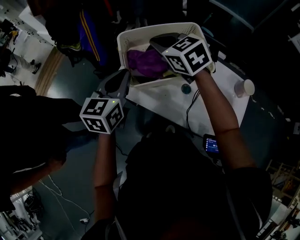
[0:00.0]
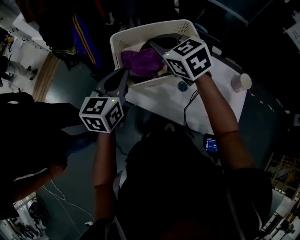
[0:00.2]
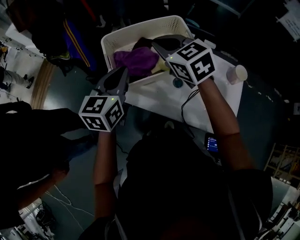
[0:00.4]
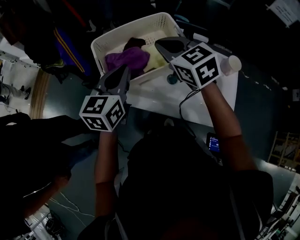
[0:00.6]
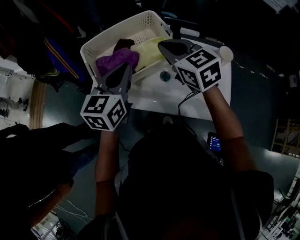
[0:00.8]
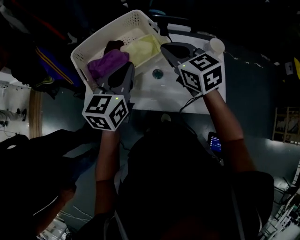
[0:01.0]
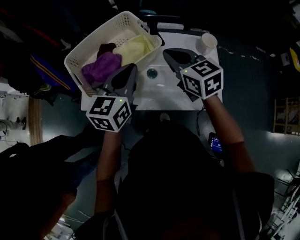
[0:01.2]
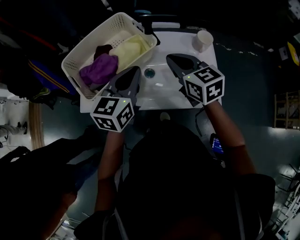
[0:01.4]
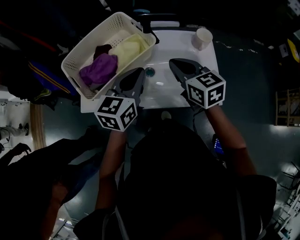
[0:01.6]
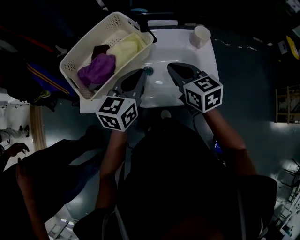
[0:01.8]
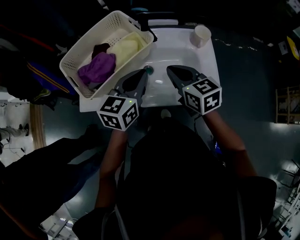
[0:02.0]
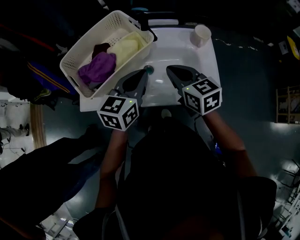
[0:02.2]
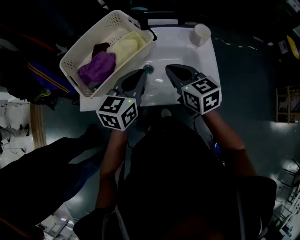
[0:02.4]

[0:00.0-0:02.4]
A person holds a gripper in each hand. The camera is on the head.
0.0 to 1.2 s: The right gripper ends up approximately 25 cm from where it was, and changes its angle by approximately 40 degrees; the left gripper ends up approximately 20 cm from where it was, and changes its angle by approximately 30 degrees.
1.2 to 2.4 s: The right gripper goes approximately 5 cm backward. The left gripper ends up approximately 5 cm from where it was.

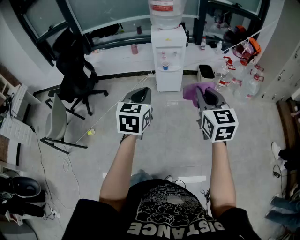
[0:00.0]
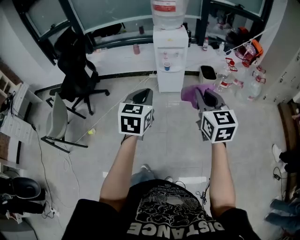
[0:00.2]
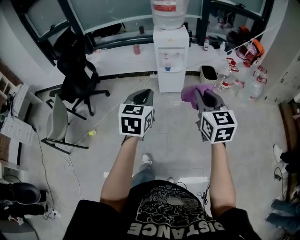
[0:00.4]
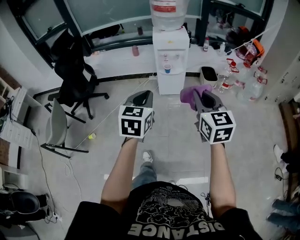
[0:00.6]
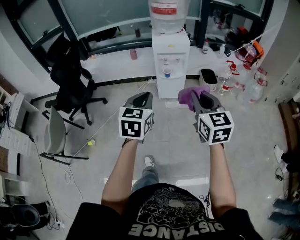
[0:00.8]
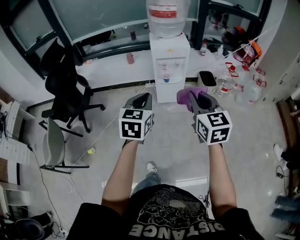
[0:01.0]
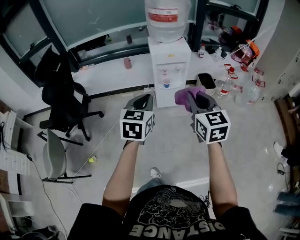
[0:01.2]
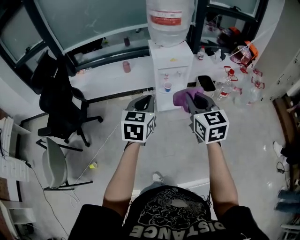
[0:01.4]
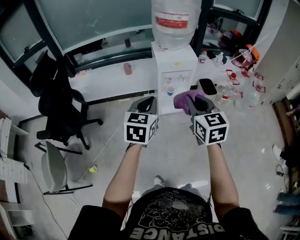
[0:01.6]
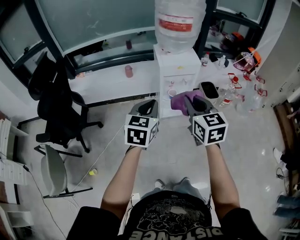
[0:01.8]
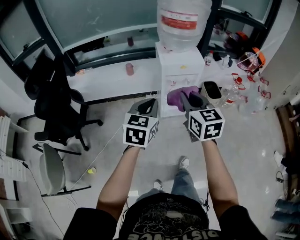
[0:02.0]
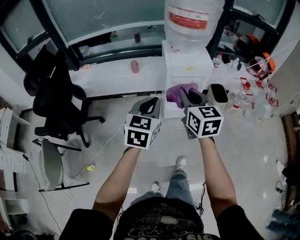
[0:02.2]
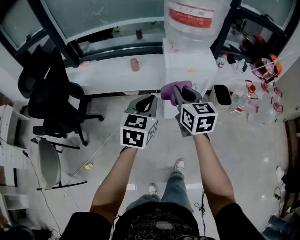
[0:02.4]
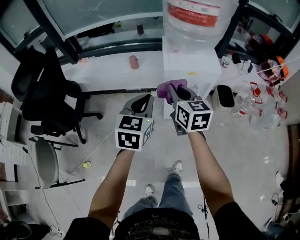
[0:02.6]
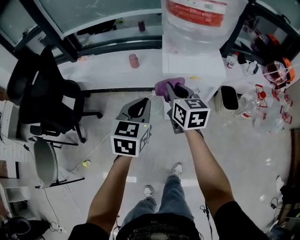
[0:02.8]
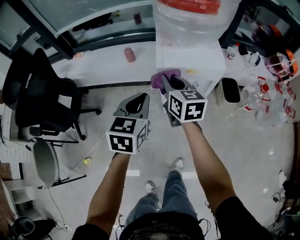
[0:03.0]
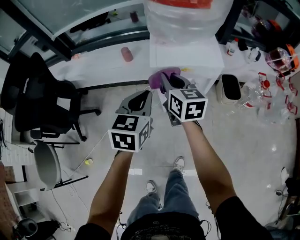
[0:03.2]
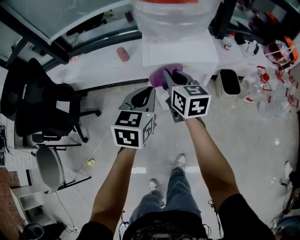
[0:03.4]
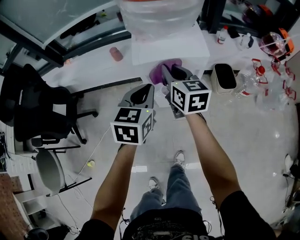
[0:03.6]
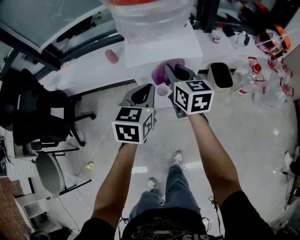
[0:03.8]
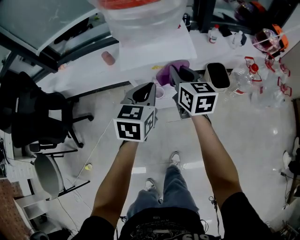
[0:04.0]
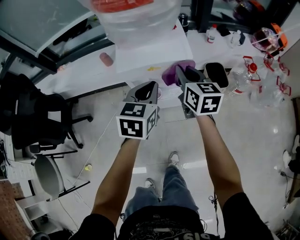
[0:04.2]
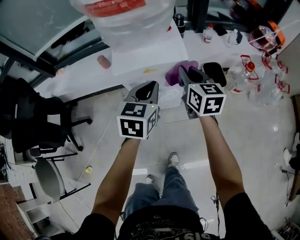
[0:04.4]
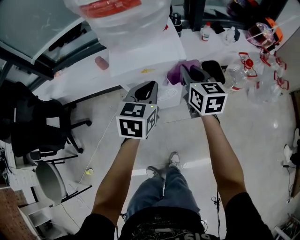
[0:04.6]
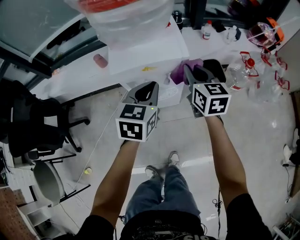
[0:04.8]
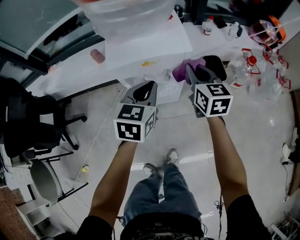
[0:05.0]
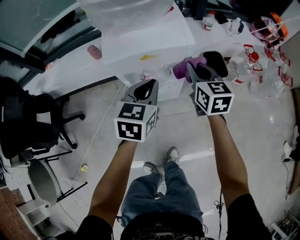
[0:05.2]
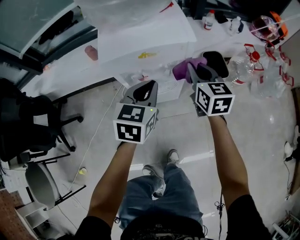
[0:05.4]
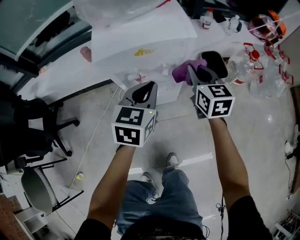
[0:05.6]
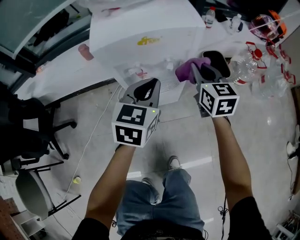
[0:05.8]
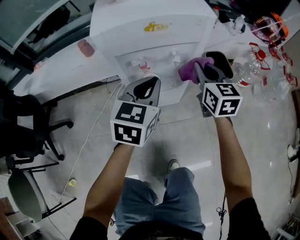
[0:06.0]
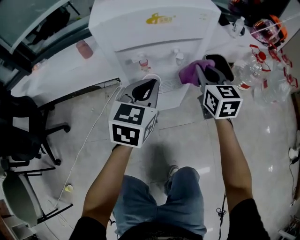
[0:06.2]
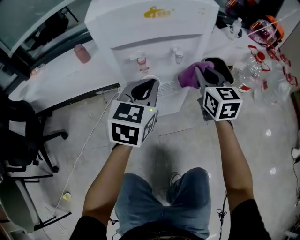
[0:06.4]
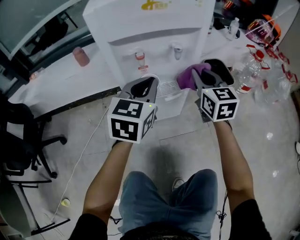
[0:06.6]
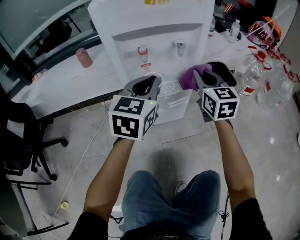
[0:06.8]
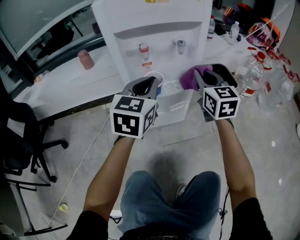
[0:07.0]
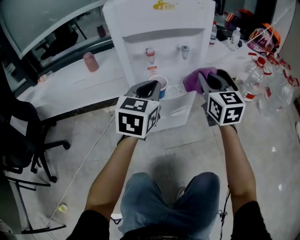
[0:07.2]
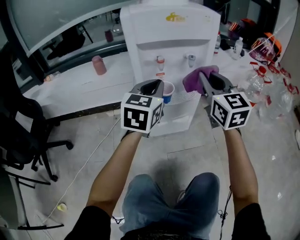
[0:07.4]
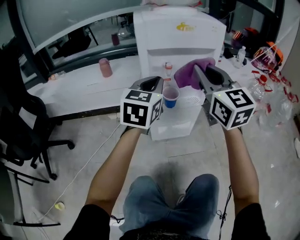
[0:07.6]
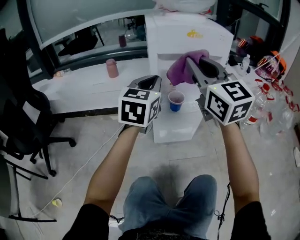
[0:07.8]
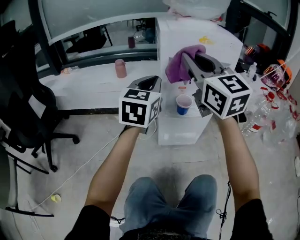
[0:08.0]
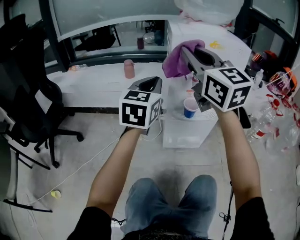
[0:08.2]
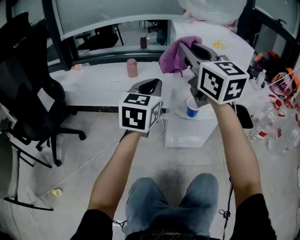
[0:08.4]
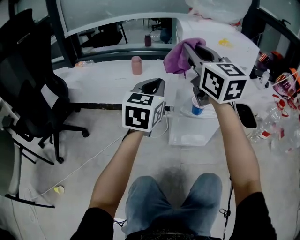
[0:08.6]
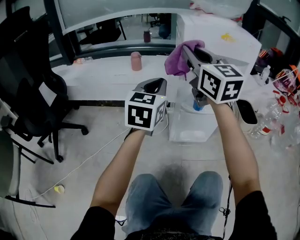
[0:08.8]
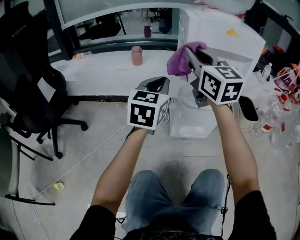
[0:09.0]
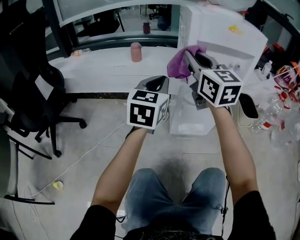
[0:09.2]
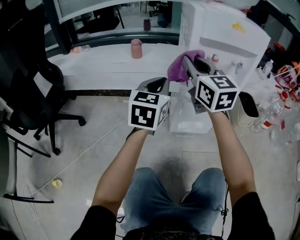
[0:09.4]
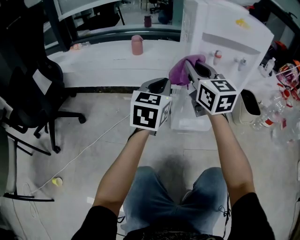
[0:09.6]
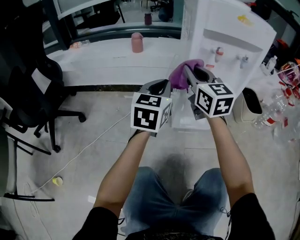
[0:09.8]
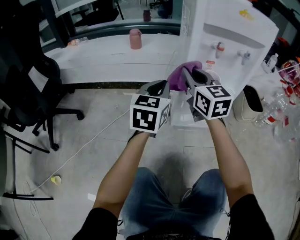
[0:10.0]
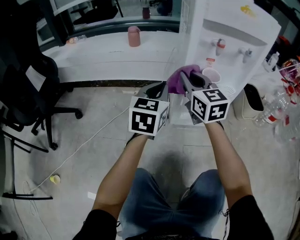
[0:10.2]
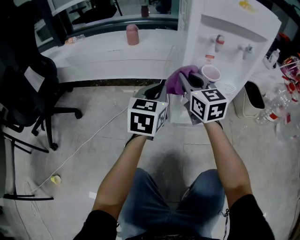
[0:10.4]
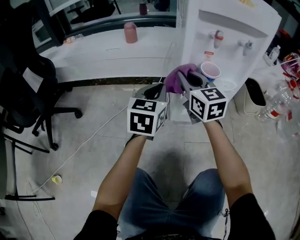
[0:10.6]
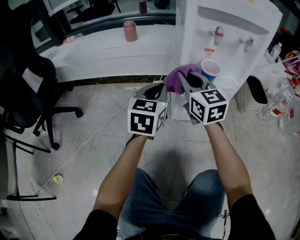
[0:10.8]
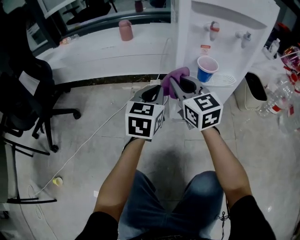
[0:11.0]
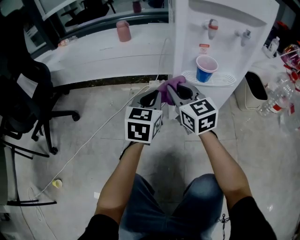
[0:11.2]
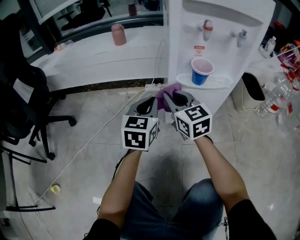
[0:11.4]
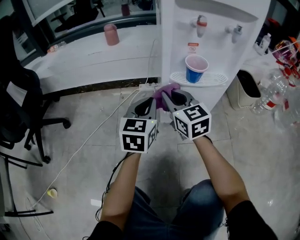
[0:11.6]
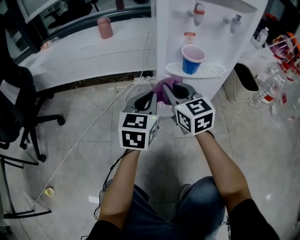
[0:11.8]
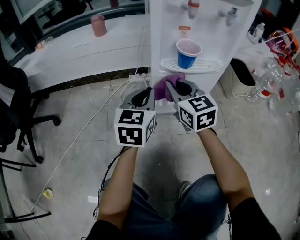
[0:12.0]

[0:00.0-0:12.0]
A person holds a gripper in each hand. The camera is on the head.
0.0 to 1.6 s: The left gripper moves forward, roughly 30 cm. Meanwhile the right gripper is displaced forward and to the left by about 30 cm.
1.6 to 3.0 s: The grippers both shift forward and downward by some 30 cm. The right gripper swivels approximately 20 degrees.
3.0 to 4.4 s: Both grippers move to the right, approximately 20 cm.
4.4 to 6.0 s: The grippers both shift downward by roughly 20 cm.
6.0 to 7.6 s: The left gripper shifts approximately 5 cm to the left, and reaches approximately 10 cm downward, then returns, while the right gripper shifts approximately 15 cm to the left, backward and upward, and changes its angle by some 30 degrees.
7.6 to 9.0 s: The left gripper shifts roughly 10 cm to the left; the right gripper heads to the left and forward, covering approximately 15 cm.
9.0 to 10.4 s: The right gripper travels downward by approximately 20 cm; the left gripper heads downward, covering roughly 15 cm.
10.4 to 12.0 s: The two grippers go approximately 10 cm downward and to the right.

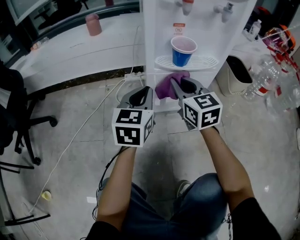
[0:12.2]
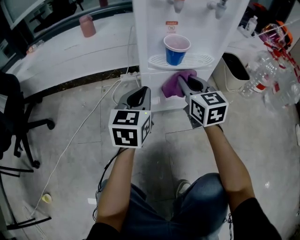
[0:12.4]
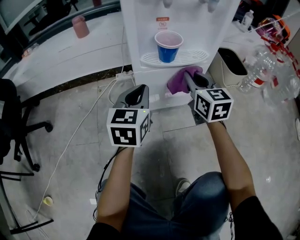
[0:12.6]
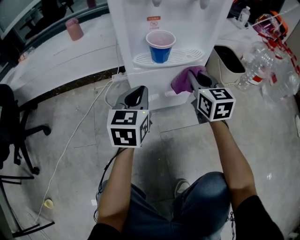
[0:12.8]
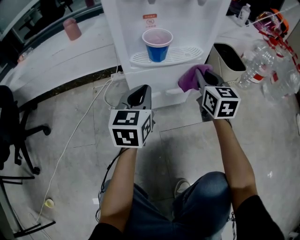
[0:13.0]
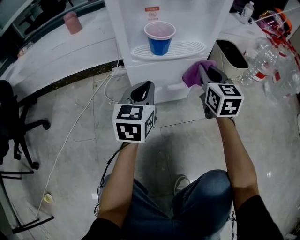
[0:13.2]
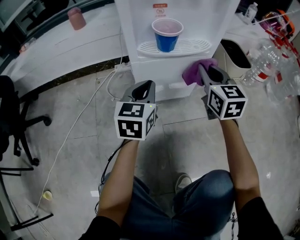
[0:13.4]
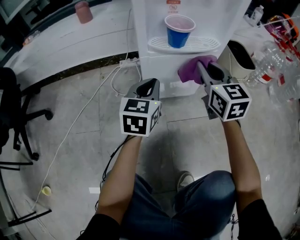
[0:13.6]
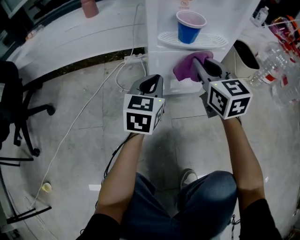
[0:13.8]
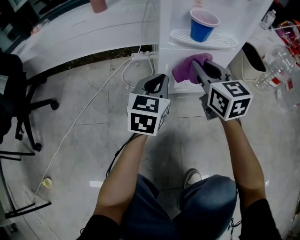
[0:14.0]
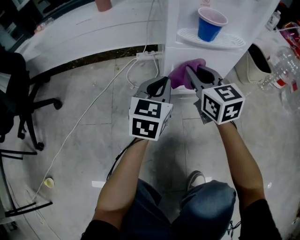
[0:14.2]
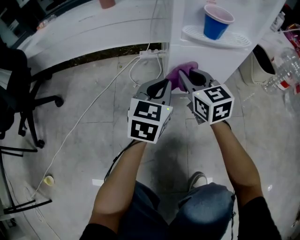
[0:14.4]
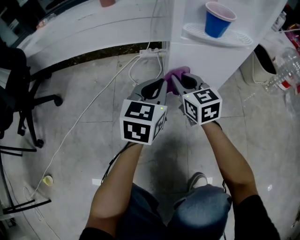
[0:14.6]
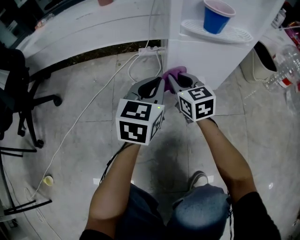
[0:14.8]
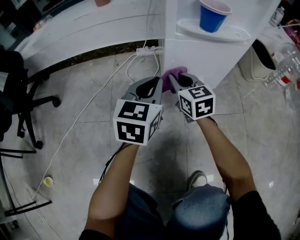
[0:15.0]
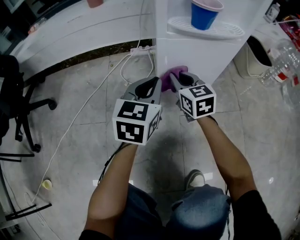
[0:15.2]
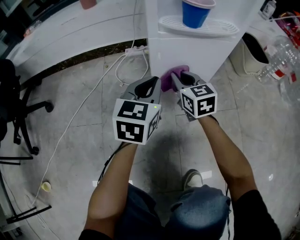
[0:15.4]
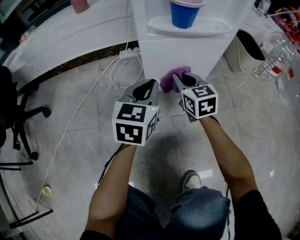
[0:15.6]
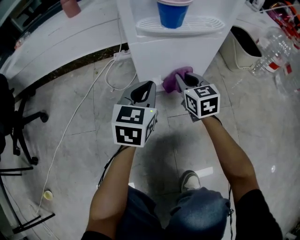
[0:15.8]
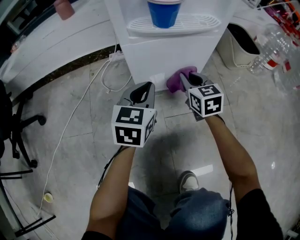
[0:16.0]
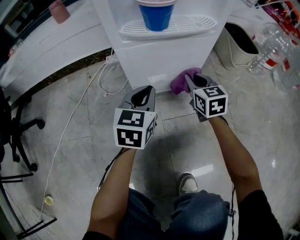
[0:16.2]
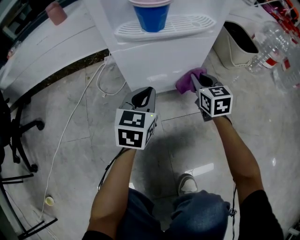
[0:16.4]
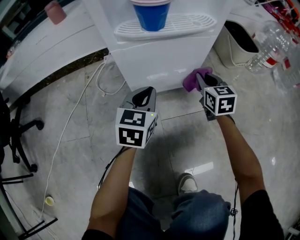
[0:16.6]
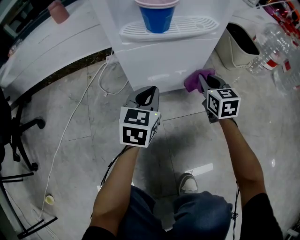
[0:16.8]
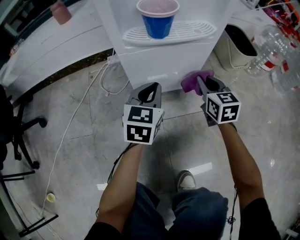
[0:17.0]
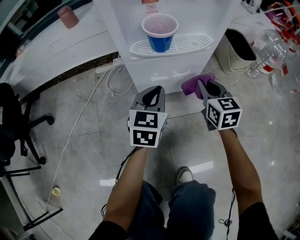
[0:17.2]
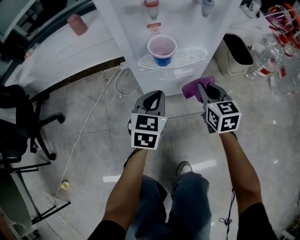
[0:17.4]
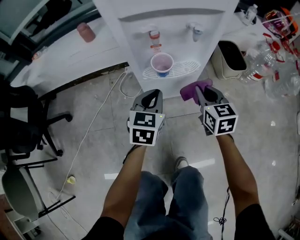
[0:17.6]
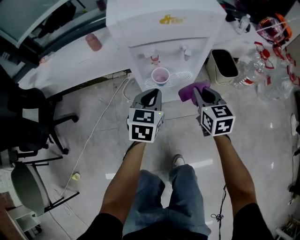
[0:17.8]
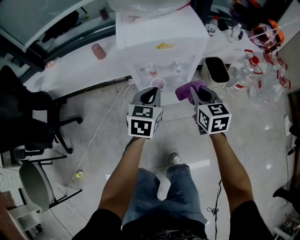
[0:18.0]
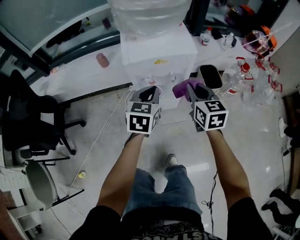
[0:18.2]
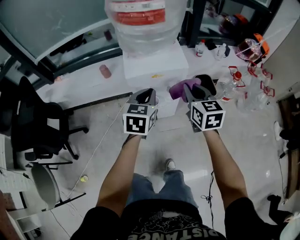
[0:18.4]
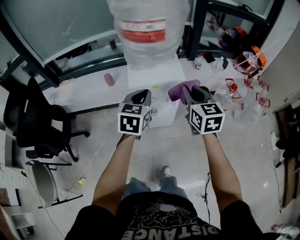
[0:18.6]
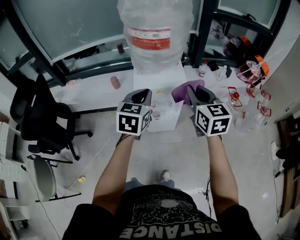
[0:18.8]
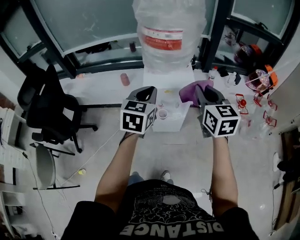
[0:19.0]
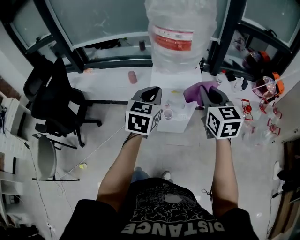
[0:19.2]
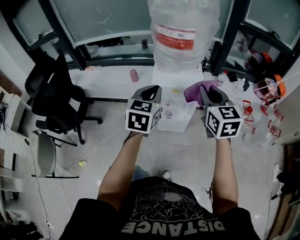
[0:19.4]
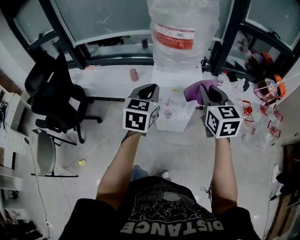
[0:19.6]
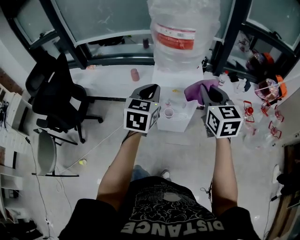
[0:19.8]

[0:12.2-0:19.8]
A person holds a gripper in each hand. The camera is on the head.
12.2 to 13.8 s: The right gripper moves about 15 cm to the right and comes back. Meanwhile the left gripper is displaced downward by approximately 5 cm.
13.8 to 15.2 s: The right gripper travels downward and to the left by roughly 20 cm.
15.2 to 16.8 s: The right gripper moves to the right, about 20 cm. The left gripper is displaced to the right and downward by roughly 10 cm.
16.8 to 18.2 s: The two grippers go approximately 50 cm upward.
18.2 to 19.8 s: Both grippers travel together upward, some 25 cm.

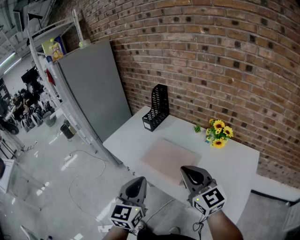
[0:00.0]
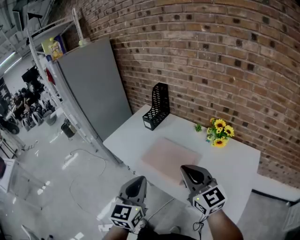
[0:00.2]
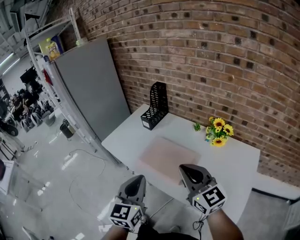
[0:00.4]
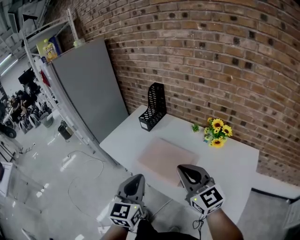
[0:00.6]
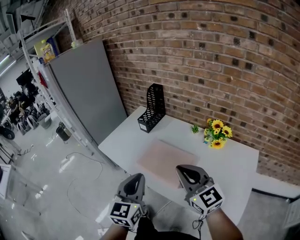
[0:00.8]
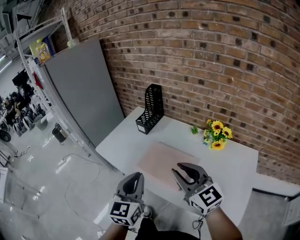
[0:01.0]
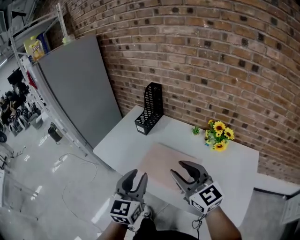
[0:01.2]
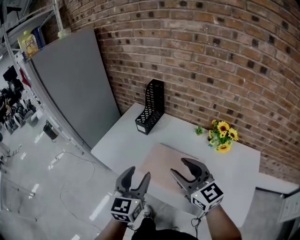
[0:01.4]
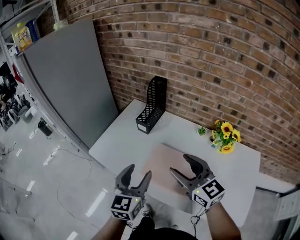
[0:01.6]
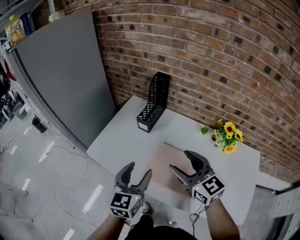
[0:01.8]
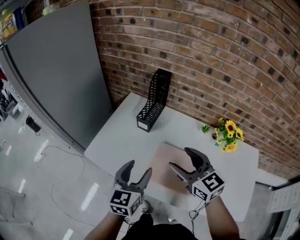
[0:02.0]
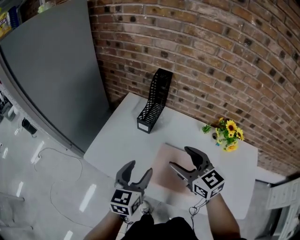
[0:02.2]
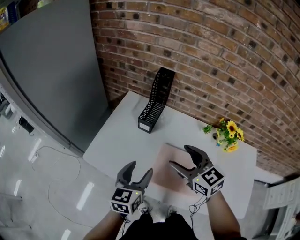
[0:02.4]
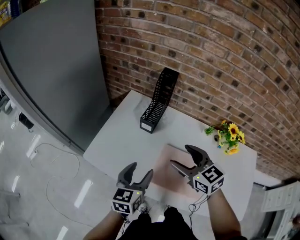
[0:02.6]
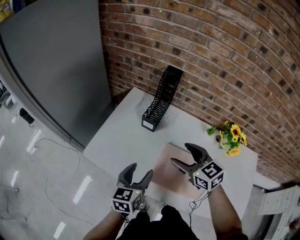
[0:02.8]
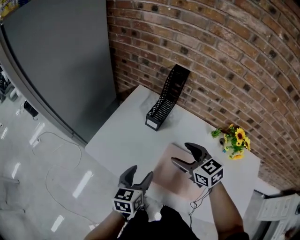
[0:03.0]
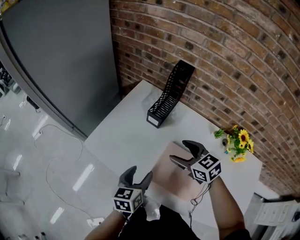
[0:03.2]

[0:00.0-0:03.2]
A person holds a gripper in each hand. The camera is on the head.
0.0 to 1.6 s: Both grippers move forward, some 20 cm. The right gripper opens; the left gripper opens.
1.6 to 3.2 s: The left gripper travels downward and forward by roughly 20 cm, and changes its angle by some 30 degrees. Meanwhile the right gripper is displaced forward and downward by some 20 cm, and swivels some 30 degrees.
